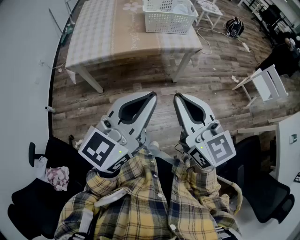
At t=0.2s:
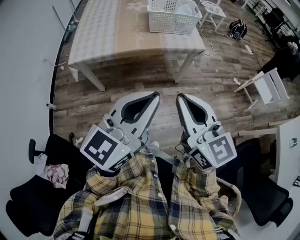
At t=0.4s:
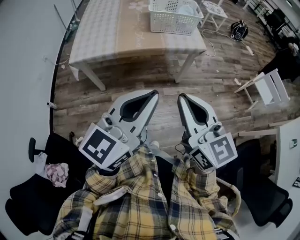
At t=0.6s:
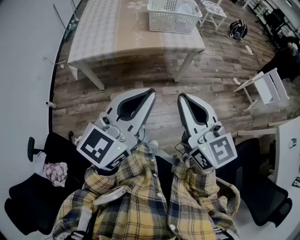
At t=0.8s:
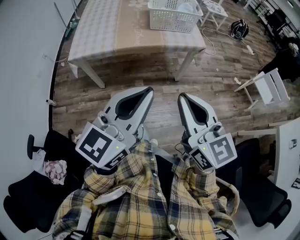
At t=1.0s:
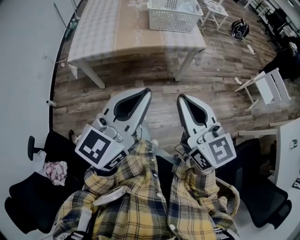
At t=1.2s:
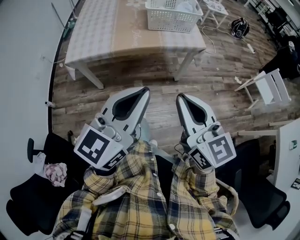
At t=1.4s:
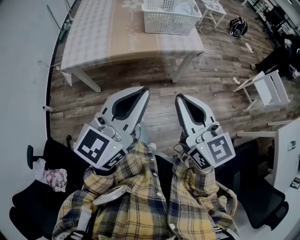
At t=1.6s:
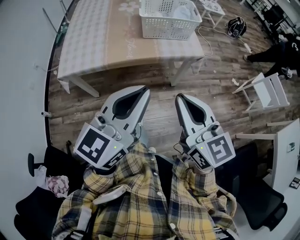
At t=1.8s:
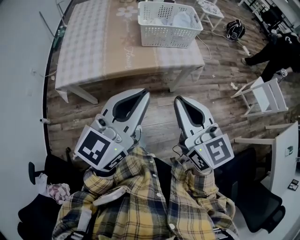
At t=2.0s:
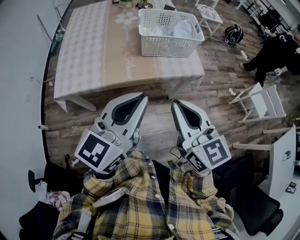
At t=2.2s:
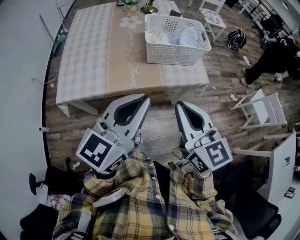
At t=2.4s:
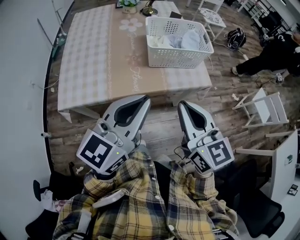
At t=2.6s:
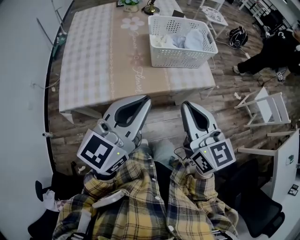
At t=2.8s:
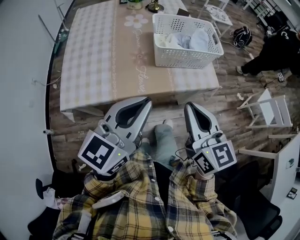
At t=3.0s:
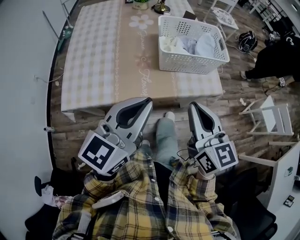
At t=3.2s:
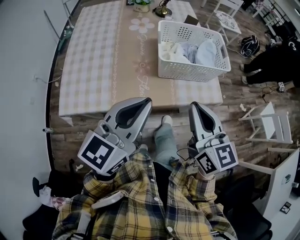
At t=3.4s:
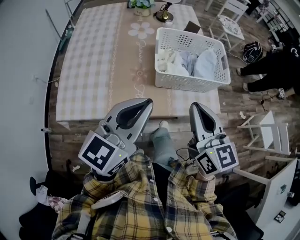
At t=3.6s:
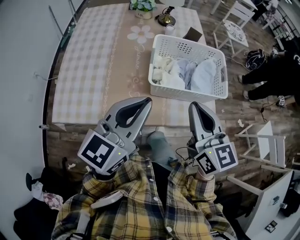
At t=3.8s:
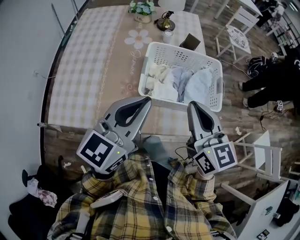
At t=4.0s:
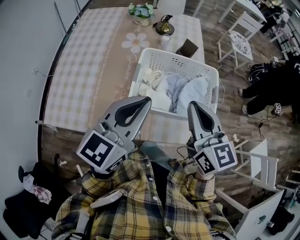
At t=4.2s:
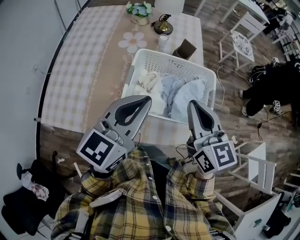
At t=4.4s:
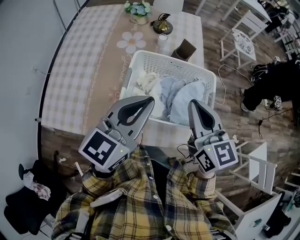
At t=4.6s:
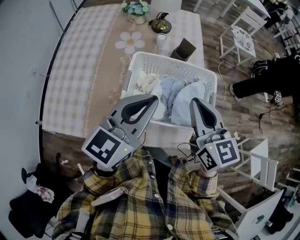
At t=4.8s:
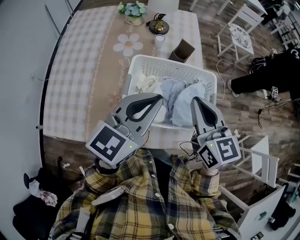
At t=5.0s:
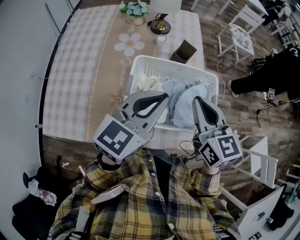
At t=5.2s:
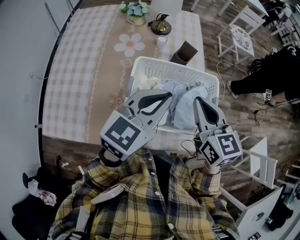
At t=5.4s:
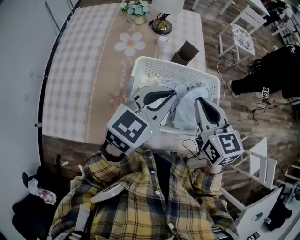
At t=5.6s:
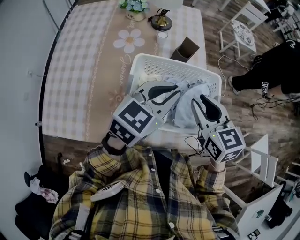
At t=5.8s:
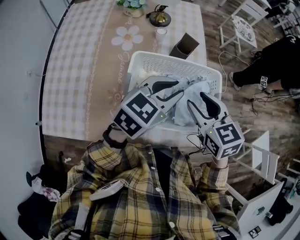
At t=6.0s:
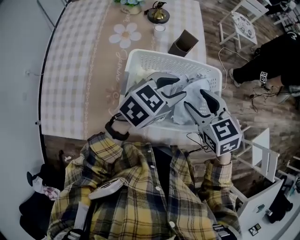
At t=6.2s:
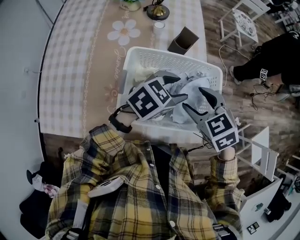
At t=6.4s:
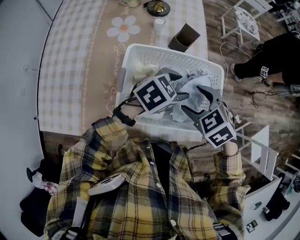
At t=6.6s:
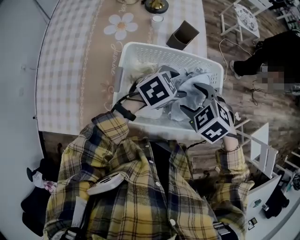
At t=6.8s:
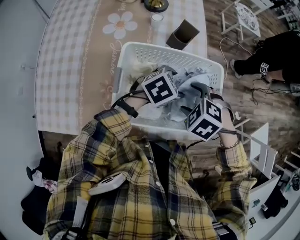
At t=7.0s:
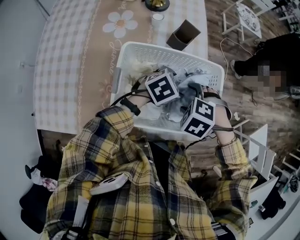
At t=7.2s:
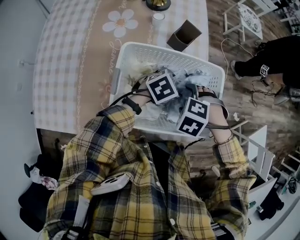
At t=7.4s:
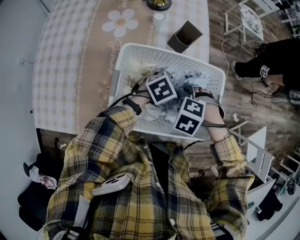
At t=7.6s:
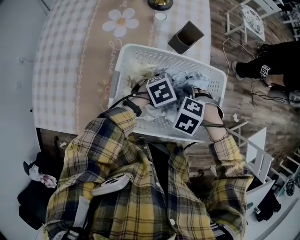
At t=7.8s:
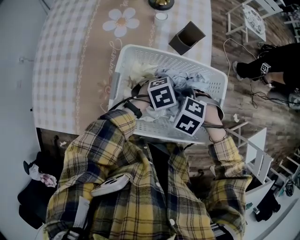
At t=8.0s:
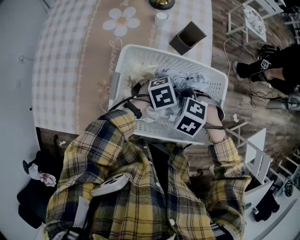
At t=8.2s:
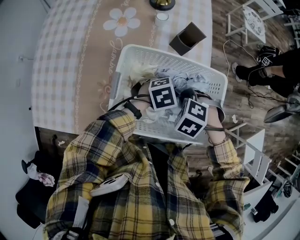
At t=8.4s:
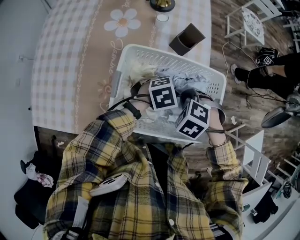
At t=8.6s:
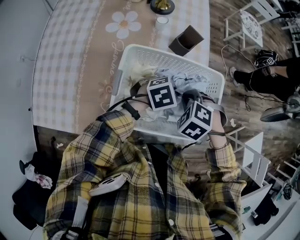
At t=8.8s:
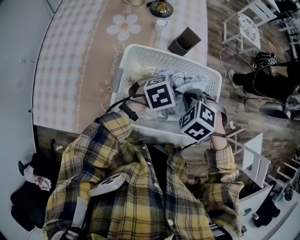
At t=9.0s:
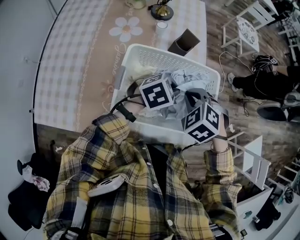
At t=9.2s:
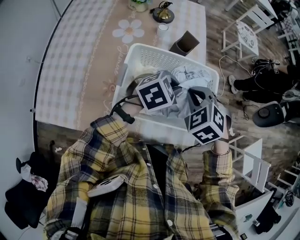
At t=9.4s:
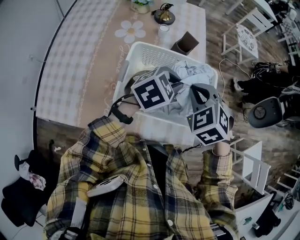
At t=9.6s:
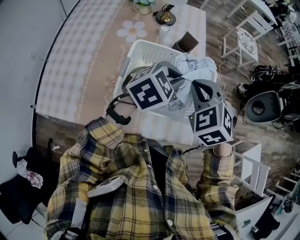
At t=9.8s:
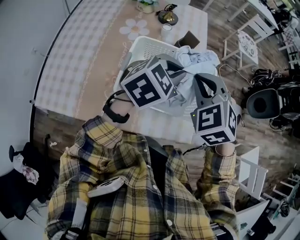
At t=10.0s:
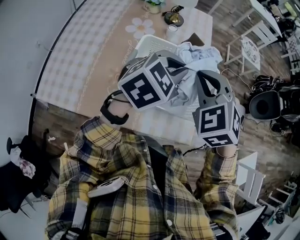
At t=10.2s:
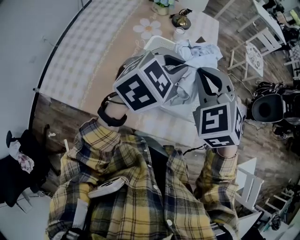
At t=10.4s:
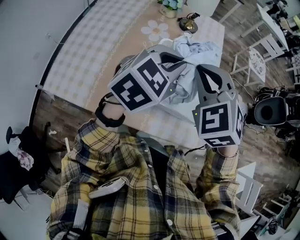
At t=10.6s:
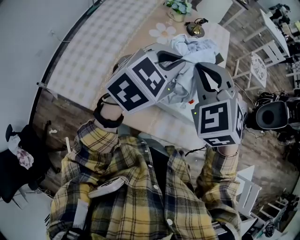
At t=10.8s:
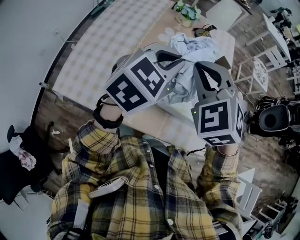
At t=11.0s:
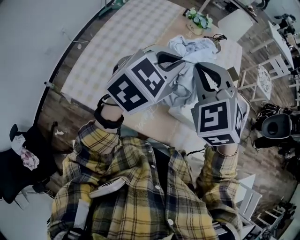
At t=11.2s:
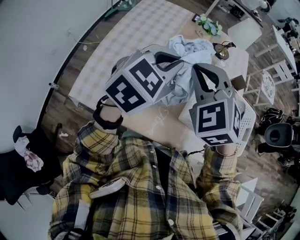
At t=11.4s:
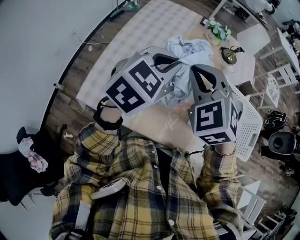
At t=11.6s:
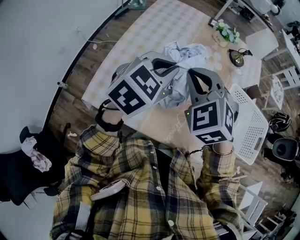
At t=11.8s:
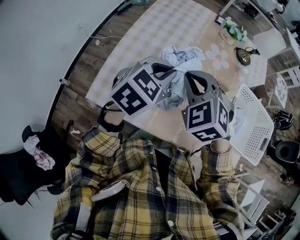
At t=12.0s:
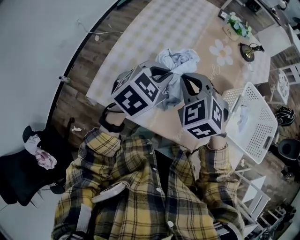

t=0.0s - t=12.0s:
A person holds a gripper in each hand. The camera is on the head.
t=0.0s - t=1.6s: Both grippers move forward, some 10 cm.
t=1.6s - t=3.0s: The right gripper moves forward, approximately 20 cm. Meanwhile the left gripper goes approximately 20 cm forward and to the left.
t=3.0s - t=4.4s: The left gripper moves to the right and forward, roughly 20 cm; the right gripper goes approximately 20 cm forward and to the right.
t=4.4s - t=6.0s: The left gripper travels downward, forward and to the right by roughly 15 cm, rotates some 30 degrees, and opens. The right gripper shifts approximately 10 cm downward, turns by roughly 30 degrees, and opens.
t=6.0s - t=7.6s: Both grippers move downward, some 20 cm. The left gripper rotates some 30 degrees. Meanwhile the right gripper tilts its fingers some 50 degrees downward.
t=7.6s - t=9.0s: Both grippers travel together upward, roughly 10 cm. The right gripper changes its angle by approximately 30 degrees, and closes up; the left gripper closes.
t=9.0s - t=10.4s: Both grippers move upward and to the left, about 20 cm. The left gripper swivels some 40 degrees. The right gripper angles its fingers upward, by approximately 30 degrees.
t=10.4s - t=12.0s: The grippers both shift to the left by roughly 40 cm.

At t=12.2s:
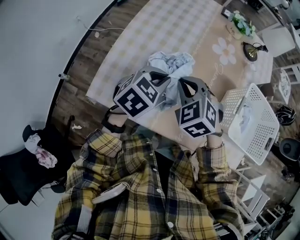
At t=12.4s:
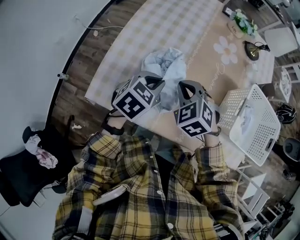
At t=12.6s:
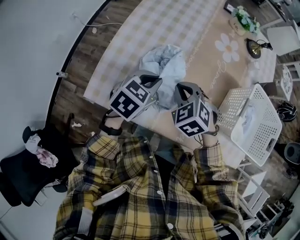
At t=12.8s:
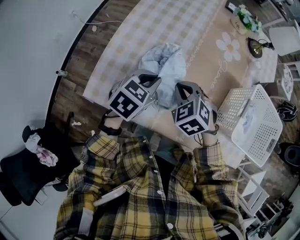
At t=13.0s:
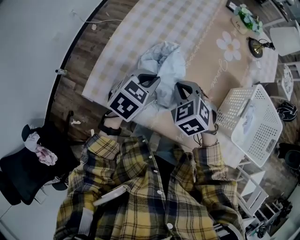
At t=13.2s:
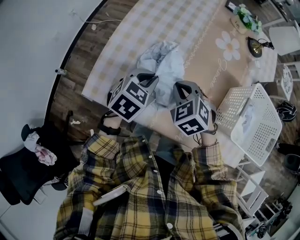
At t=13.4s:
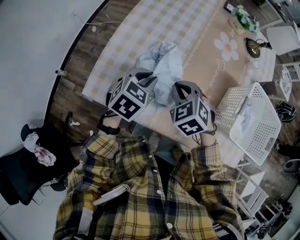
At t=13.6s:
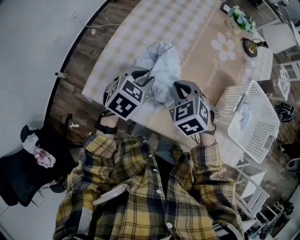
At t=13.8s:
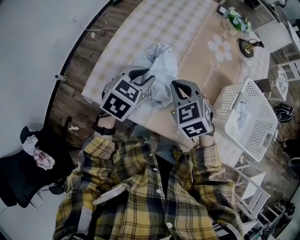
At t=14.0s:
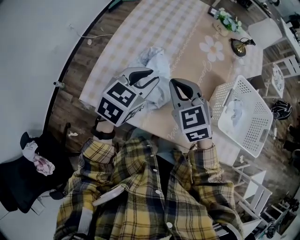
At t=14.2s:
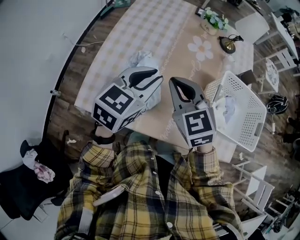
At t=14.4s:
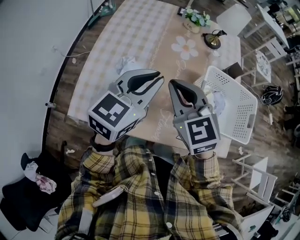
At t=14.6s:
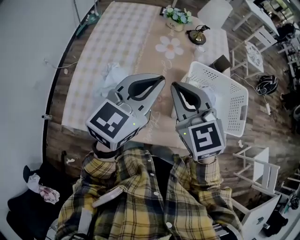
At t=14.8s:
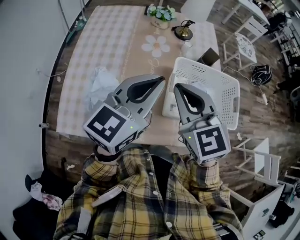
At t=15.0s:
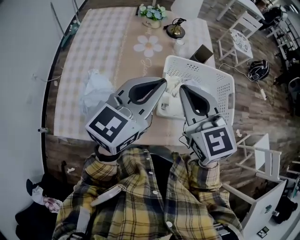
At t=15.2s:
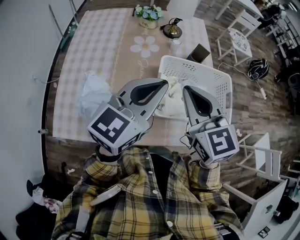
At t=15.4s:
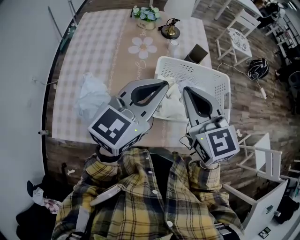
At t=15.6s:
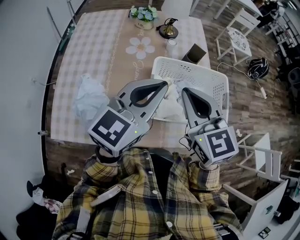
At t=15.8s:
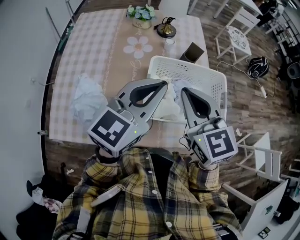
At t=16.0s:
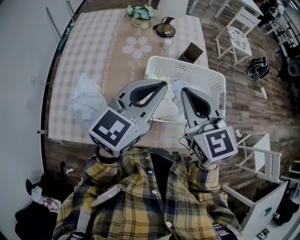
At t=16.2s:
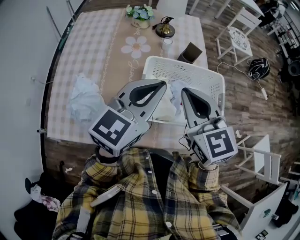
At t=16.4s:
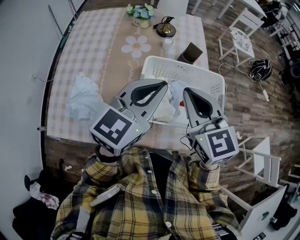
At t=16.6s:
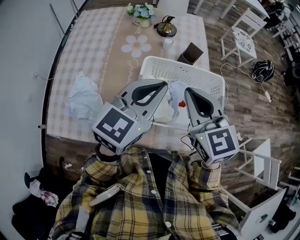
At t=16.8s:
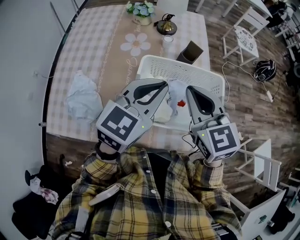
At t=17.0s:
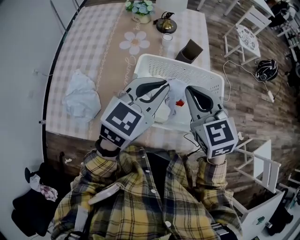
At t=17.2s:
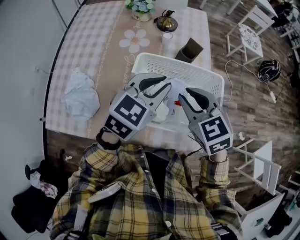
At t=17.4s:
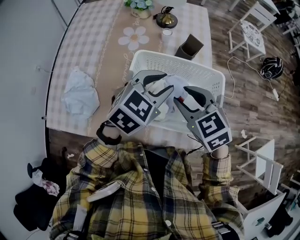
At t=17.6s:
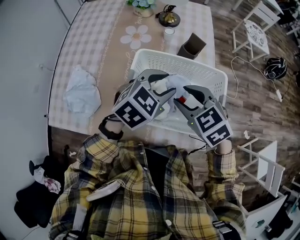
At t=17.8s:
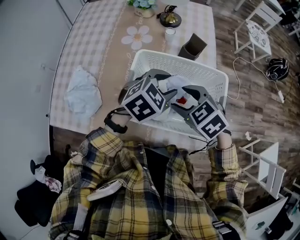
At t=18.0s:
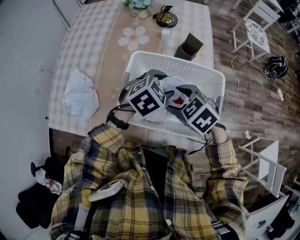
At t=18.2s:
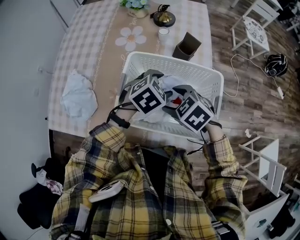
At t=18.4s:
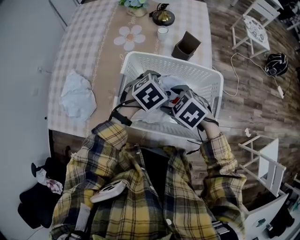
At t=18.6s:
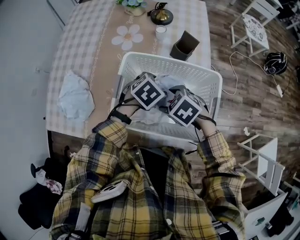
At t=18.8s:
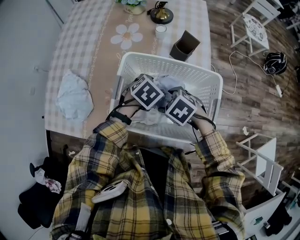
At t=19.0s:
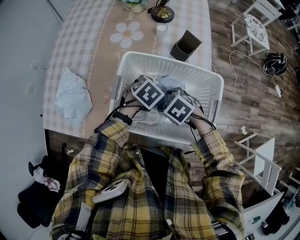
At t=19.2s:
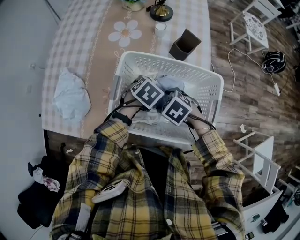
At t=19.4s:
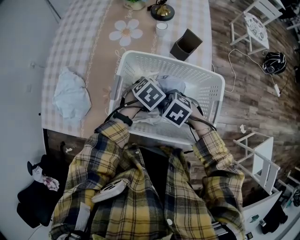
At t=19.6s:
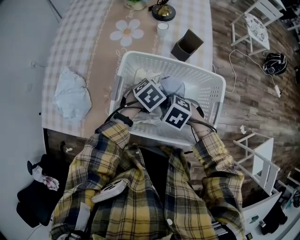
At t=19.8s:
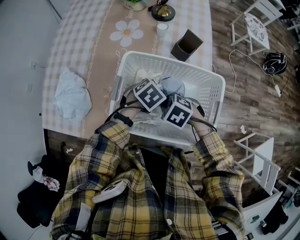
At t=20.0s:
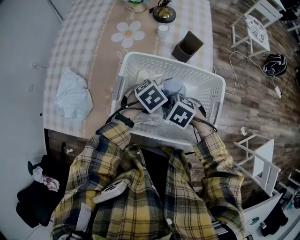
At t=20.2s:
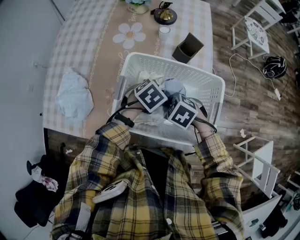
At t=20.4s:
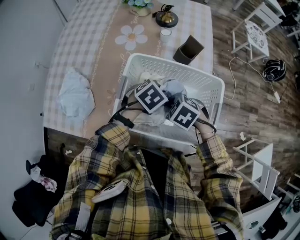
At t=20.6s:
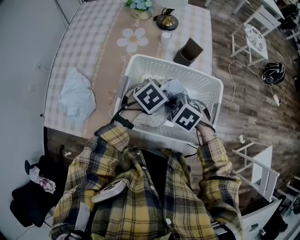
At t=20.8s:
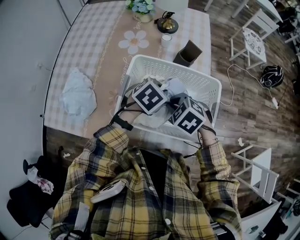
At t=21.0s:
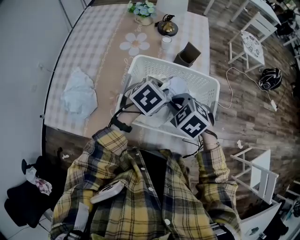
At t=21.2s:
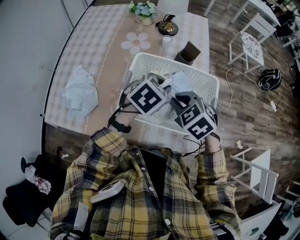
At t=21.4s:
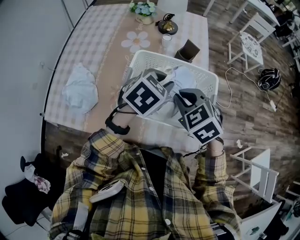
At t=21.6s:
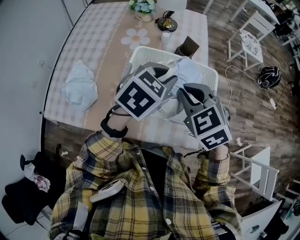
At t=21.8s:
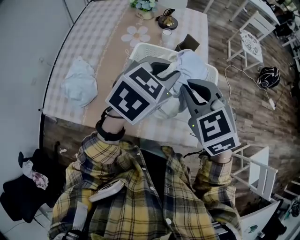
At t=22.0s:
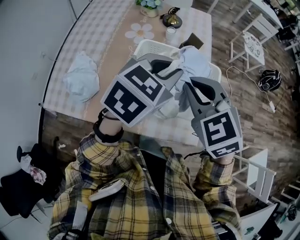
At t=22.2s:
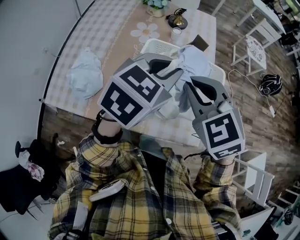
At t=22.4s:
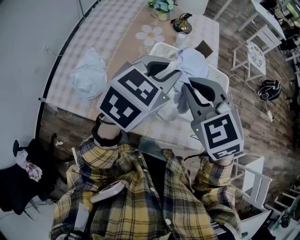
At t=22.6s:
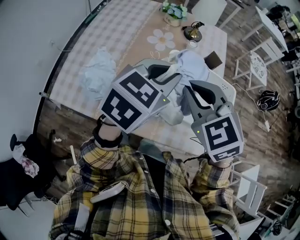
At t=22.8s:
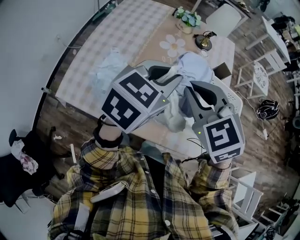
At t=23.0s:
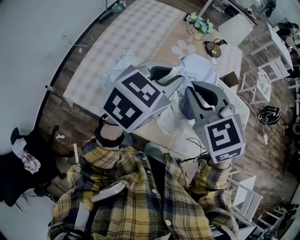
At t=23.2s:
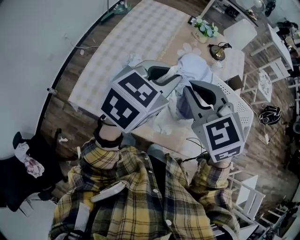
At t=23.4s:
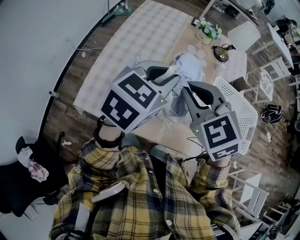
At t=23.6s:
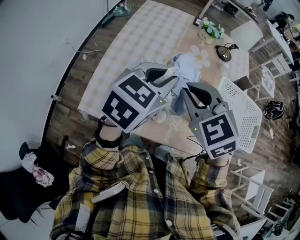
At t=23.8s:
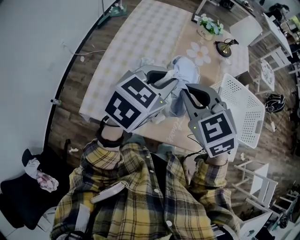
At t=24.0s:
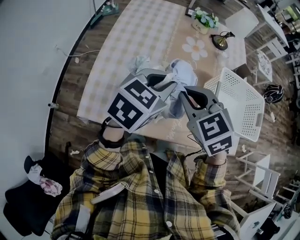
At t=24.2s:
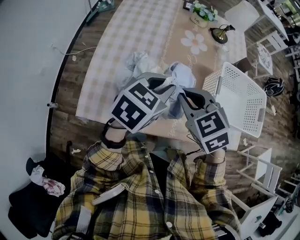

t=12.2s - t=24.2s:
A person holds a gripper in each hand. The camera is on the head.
t=13.8s - t=15.2s: Both grippers travel together to the right and upward, approximately 40 cm. The right gripper changes its angle by about 40 degrees, while the left gripper tips its fingers upward by some 40 degrees.
t=15.2s - t=16.6s: Both grippers travel together to the right, about 10 cm.
t=16.6s - t=18.2s: Both grippers move downward, roughly 20 cm. The right gripper points its fingers about 40 degrees further downward, and opens up. The left gripper tilts its fingers about 40 degrees downward, and opens its fingers.
t=18.2s - t=19.8s: The grippers both shift downward by about 10 cm. The left gripper closes. Meanwhile the right gripper closes up.
t=19.8s - t=21.2s: The two grippers go roughly 15 cm upward. The left gripper changes its angle by some 20 degrees, while the right gripper swivels approximately 20 degrees.
t=21.2s - t=22.6s: The two grippers go roughly 20 cm upward and to the left. The left gripper swivels about 30 degrees. Meanwhile the right gripper rotates about 20 degrees.
t=22.6s - t=24.2s: Both grippers travel together to the left, approximately 25 cm.
